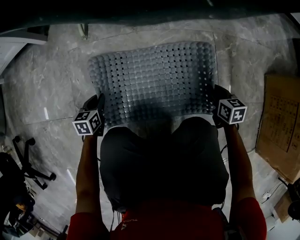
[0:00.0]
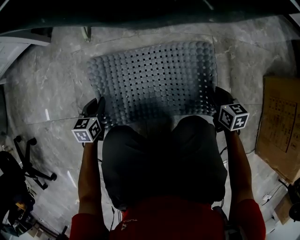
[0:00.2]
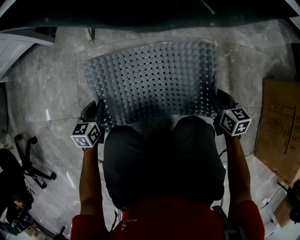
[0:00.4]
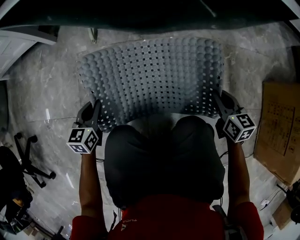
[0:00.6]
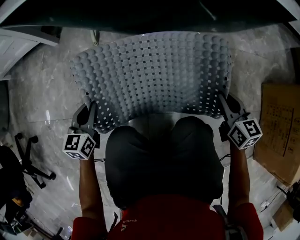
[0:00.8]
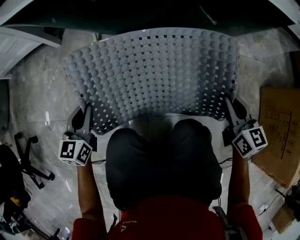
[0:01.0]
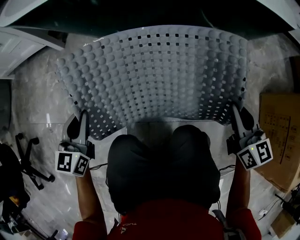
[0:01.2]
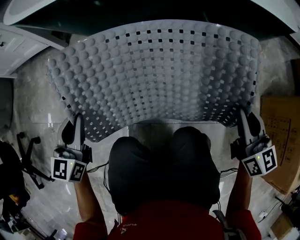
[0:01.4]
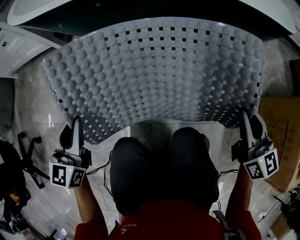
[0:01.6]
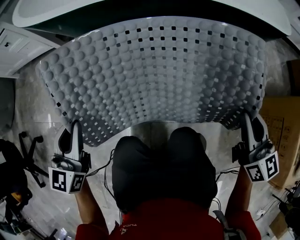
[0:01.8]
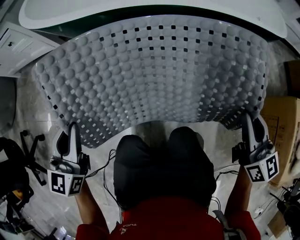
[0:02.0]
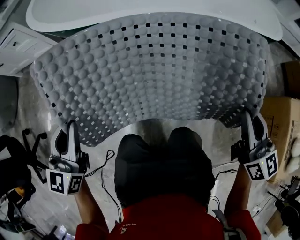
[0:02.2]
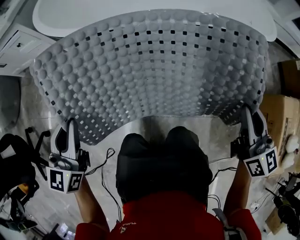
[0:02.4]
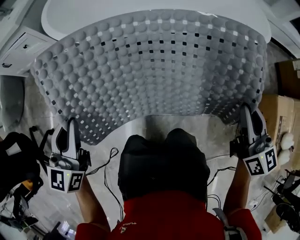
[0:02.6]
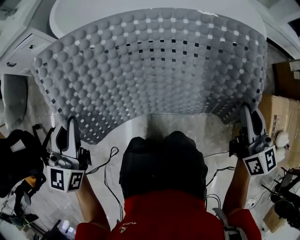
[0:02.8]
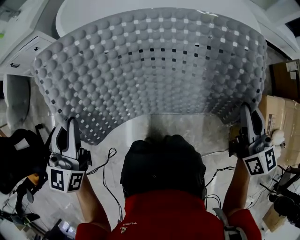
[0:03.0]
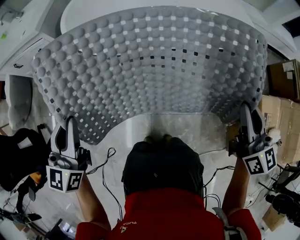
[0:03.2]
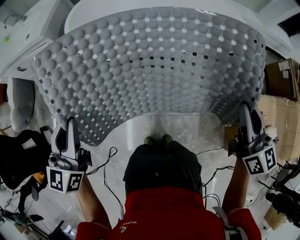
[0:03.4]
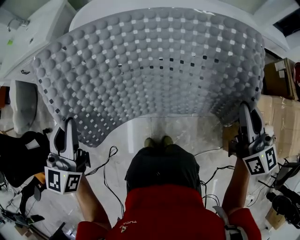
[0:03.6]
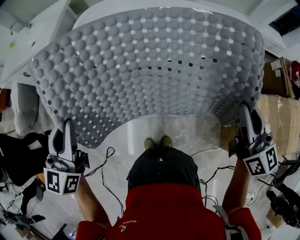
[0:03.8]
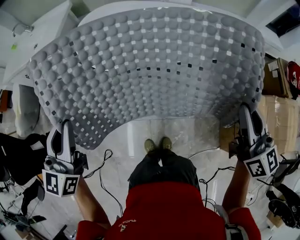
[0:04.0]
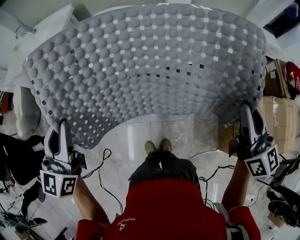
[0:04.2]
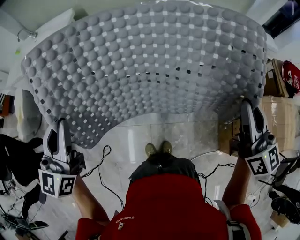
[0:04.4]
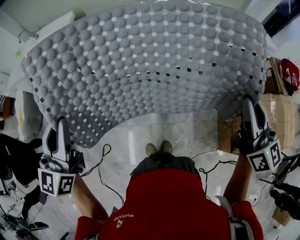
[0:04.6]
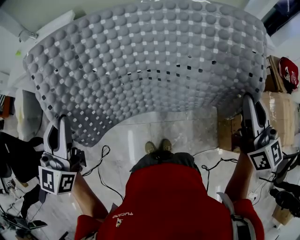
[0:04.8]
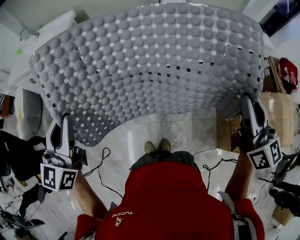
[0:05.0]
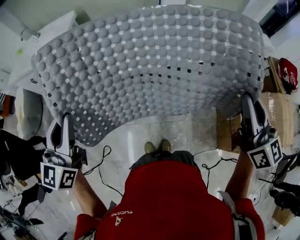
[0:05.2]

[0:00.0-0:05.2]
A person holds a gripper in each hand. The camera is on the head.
0:00.0 to 0:01.8: The two grippers go about 25 cm upward. The left gripper points its fingers about 30 degrees further upward, while the right gripper tilts its fingers approximately 30 degrees upward.
0:01.8 to 0:03.4: The grippers make only small movements.
0:03.4 to 0:05.2: The right gripper is displaced upward by roughly 5 cm.

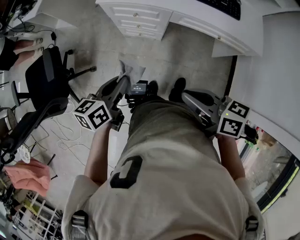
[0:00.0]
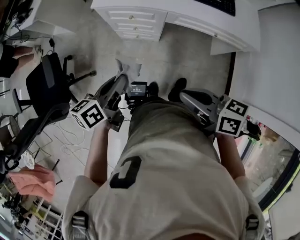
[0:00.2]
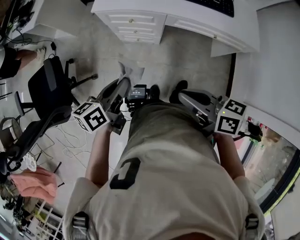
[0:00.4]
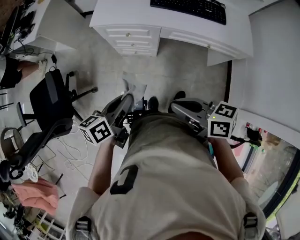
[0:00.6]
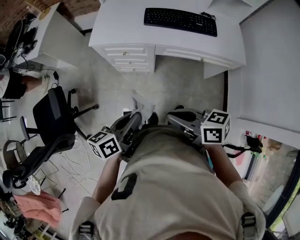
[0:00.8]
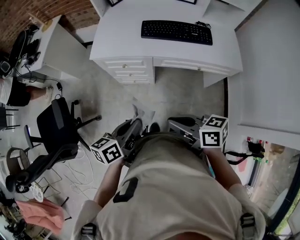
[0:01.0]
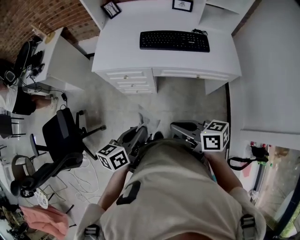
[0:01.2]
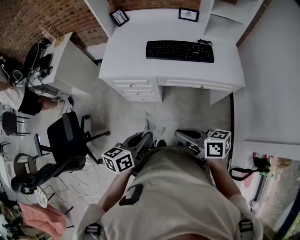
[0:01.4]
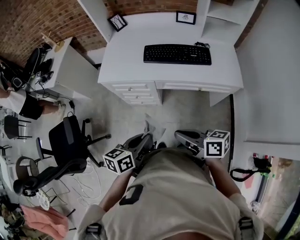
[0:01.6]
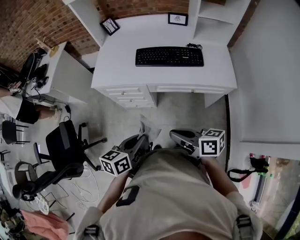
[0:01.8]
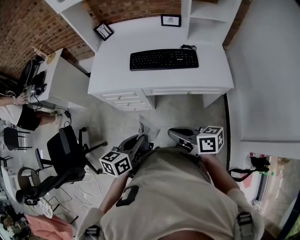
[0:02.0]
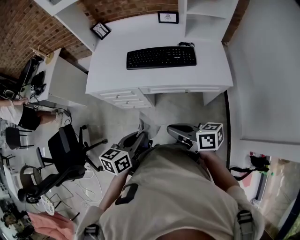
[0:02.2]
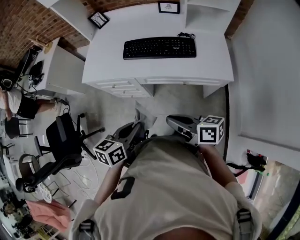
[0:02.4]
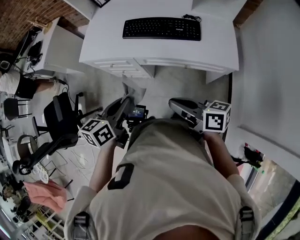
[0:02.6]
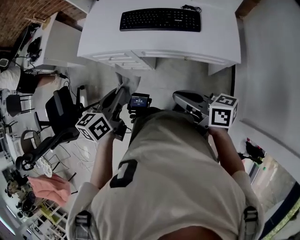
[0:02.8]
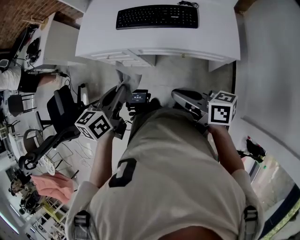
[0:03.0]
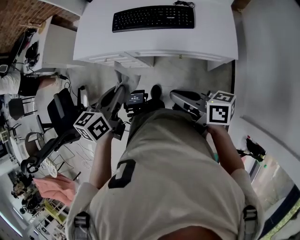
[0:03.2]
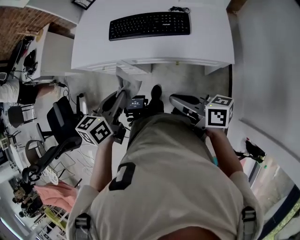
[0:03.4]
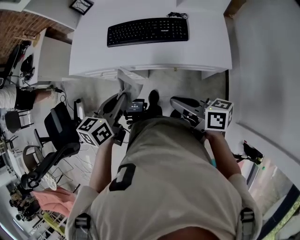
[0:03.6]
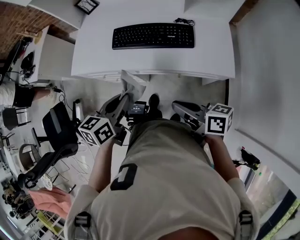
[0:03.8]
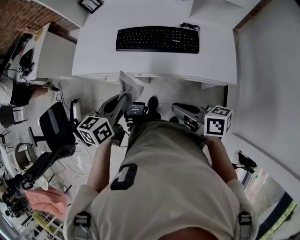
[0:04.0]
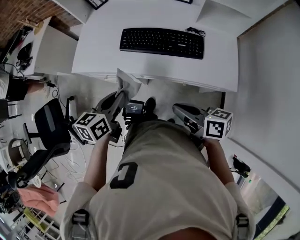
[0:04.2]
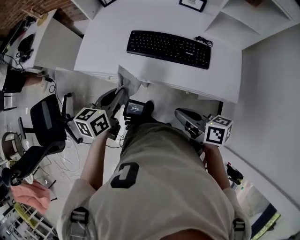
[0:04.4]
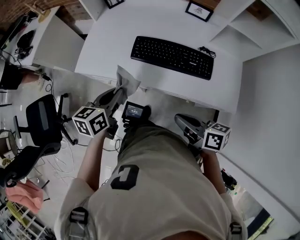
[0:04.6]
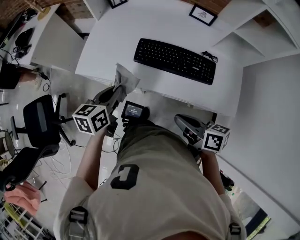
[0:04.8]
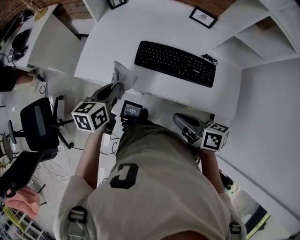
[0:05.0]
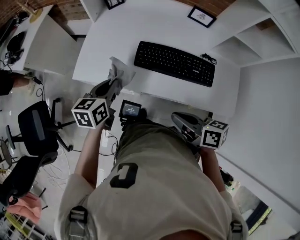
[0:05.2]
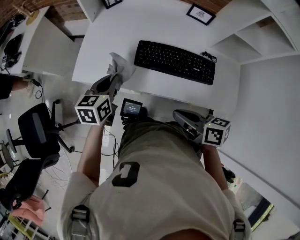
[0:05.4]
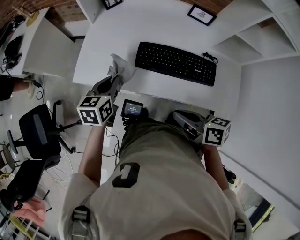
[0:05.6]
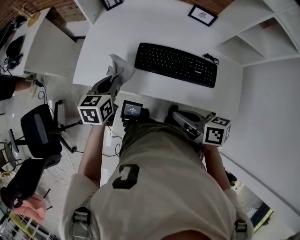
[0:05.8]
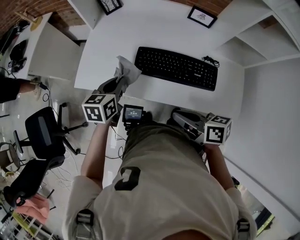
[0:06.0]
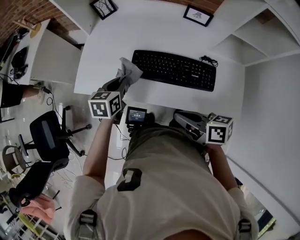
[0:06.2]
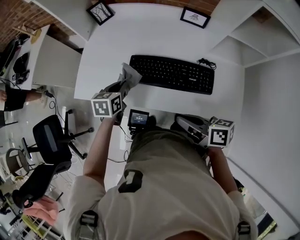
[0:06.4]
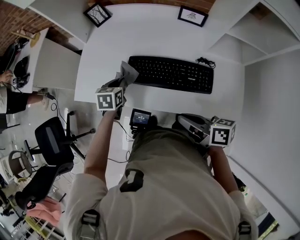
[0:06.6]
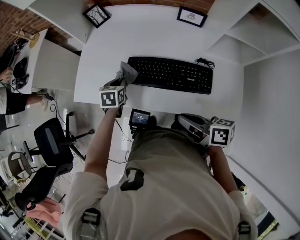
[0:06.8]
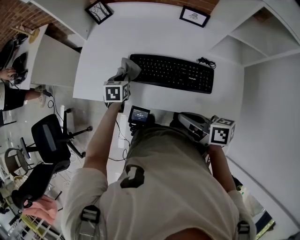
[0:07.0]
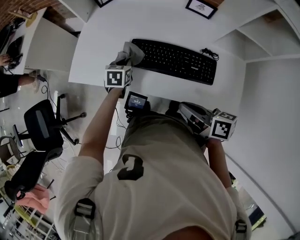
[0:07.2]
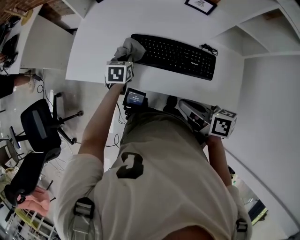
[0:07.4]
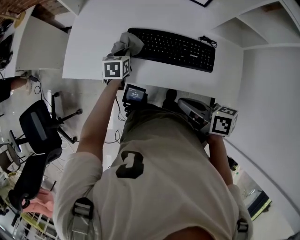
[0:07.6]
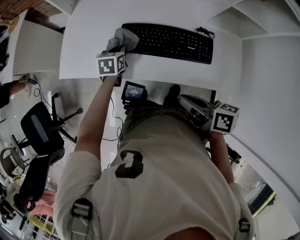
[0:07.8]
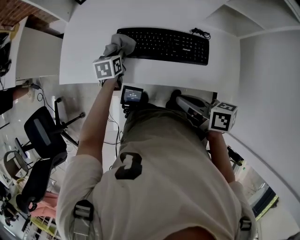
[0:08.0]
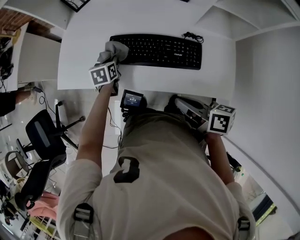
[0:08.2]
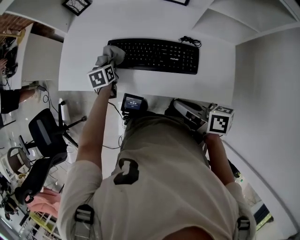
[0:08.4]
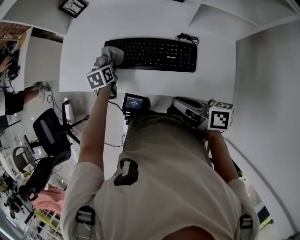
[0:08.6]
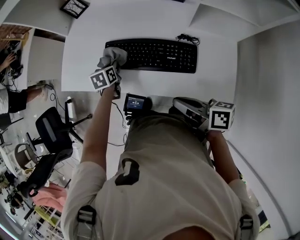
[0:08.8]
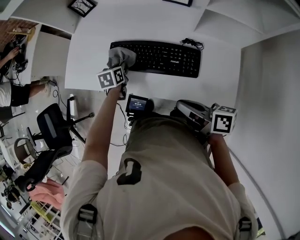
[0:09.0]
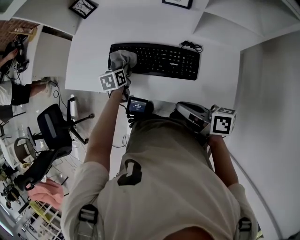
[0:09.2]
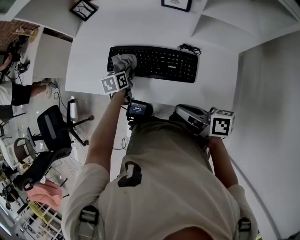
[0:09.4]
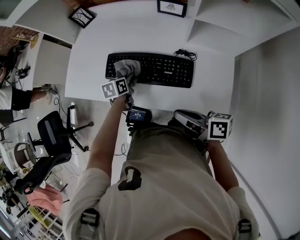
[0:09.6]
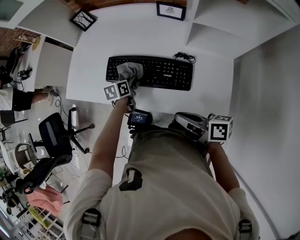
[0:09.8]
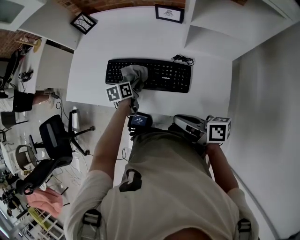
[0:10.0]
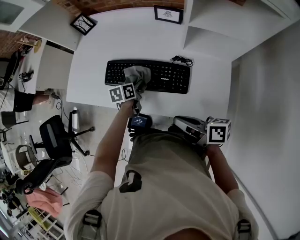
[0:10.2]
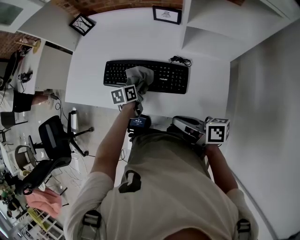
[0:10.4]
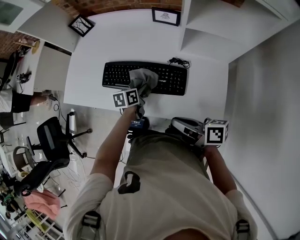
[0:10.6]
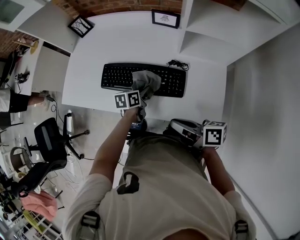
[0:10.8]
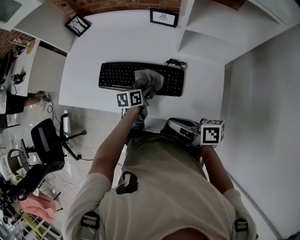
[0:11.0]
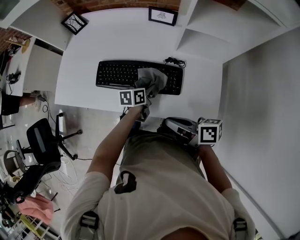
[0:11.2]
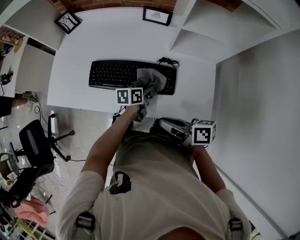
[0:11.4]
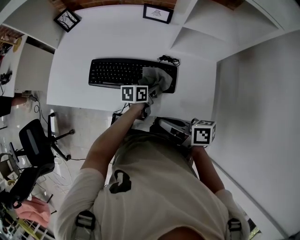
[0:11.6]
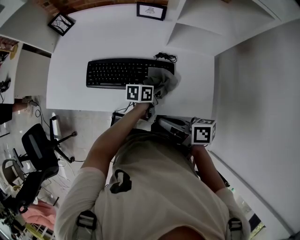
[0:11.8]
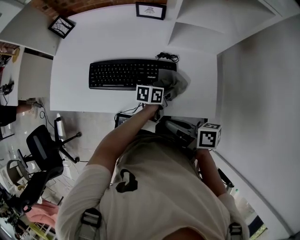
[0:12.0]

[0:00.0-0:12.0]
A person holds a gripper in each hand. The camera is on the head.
0:00.0 to 0:01.6: The right gripper is displaced to the right by roughly 10 cm. Meanwhile the left gripper goes some 15 cm to the right.
0:01.6 to 0:03.0: The right gripper travels to the right by about 15 cm. Meanwhile the left gripper moves to the right and forward, roughly 15 cm.
0:03.0 to 0:04.4: The two grippers go some 15 cm forward.
0:04.4 to 0:06.0: Both grippers travel together forward, some 15 cm.
0:06.0 to 0:07.6: The left gripper travels downward, to the right and forward by approximately 15 cm.
0:07.6 to 0:09.0: The left gripper heads to the right, covering some 5 cm. The right gripper is displaced to the right by about 15 cm.
0:09.0 to 0:10.4: The left gripper shifts about 15 cm to the right and backward.
0:10.4 to 0:12.0: The left gripper is displaced to the right by approximately 20 cm, and rotates about 30 degrees.

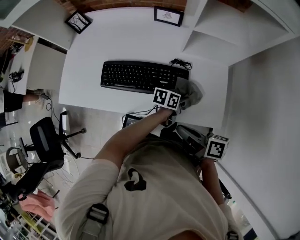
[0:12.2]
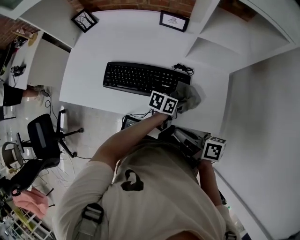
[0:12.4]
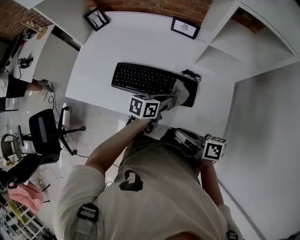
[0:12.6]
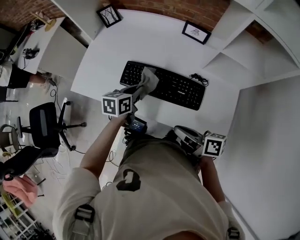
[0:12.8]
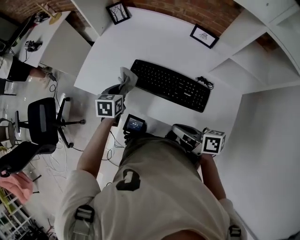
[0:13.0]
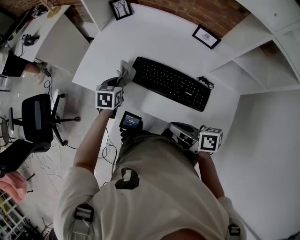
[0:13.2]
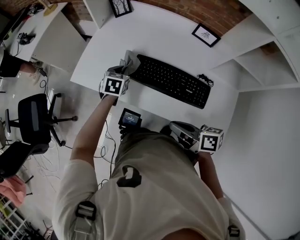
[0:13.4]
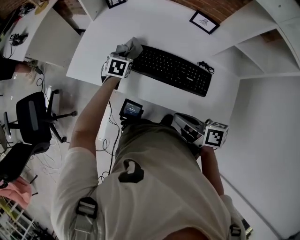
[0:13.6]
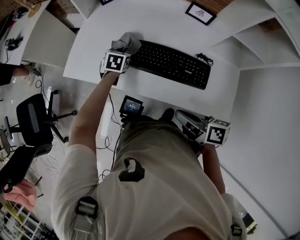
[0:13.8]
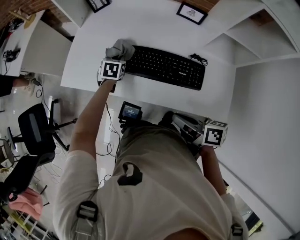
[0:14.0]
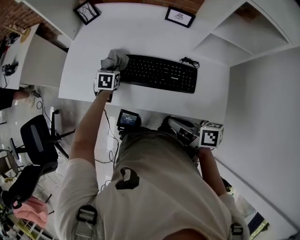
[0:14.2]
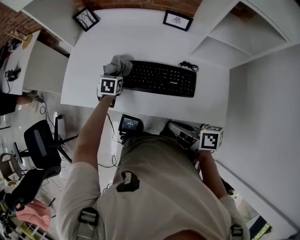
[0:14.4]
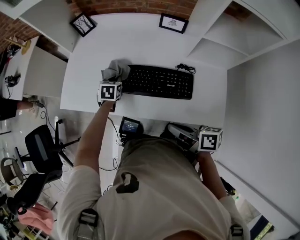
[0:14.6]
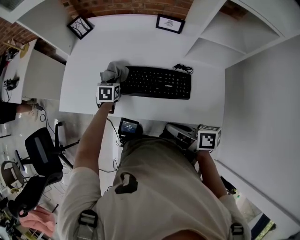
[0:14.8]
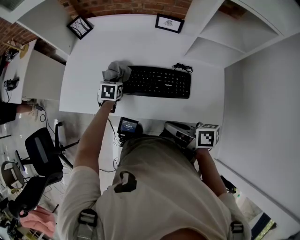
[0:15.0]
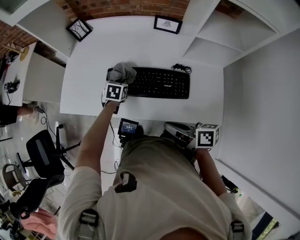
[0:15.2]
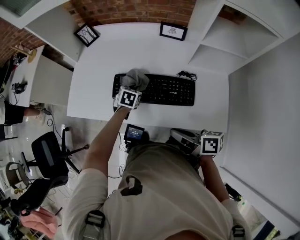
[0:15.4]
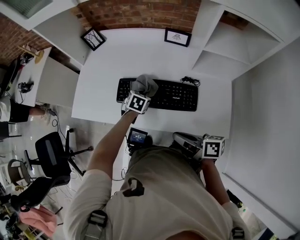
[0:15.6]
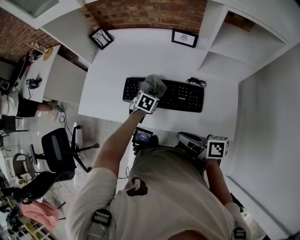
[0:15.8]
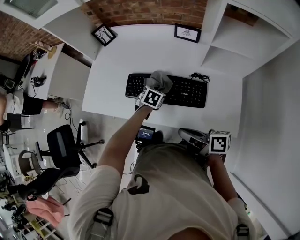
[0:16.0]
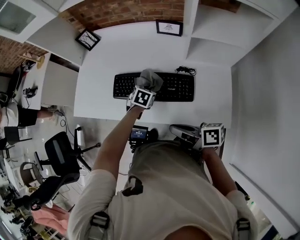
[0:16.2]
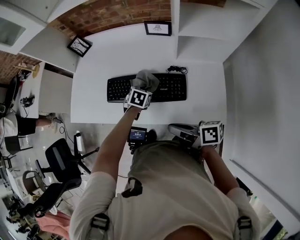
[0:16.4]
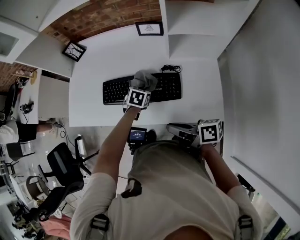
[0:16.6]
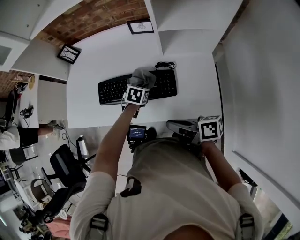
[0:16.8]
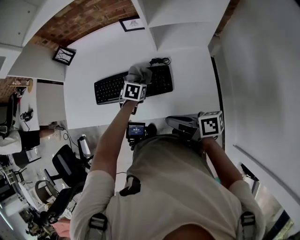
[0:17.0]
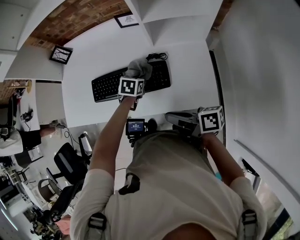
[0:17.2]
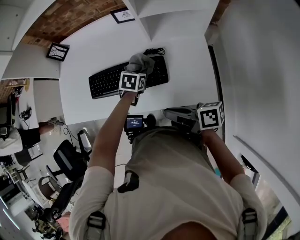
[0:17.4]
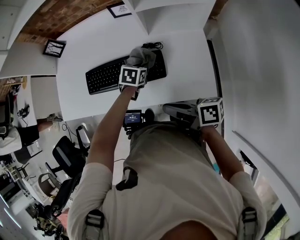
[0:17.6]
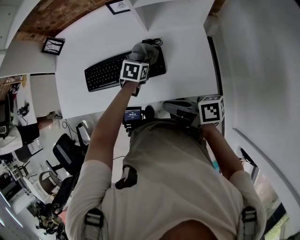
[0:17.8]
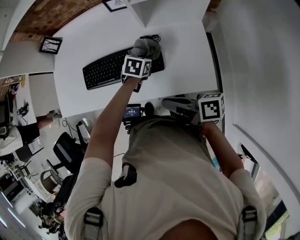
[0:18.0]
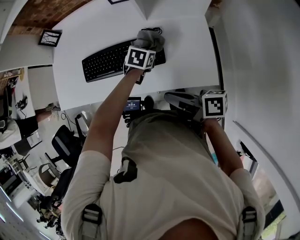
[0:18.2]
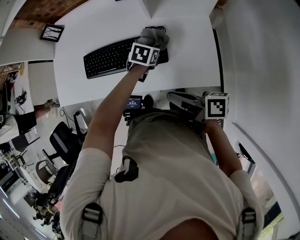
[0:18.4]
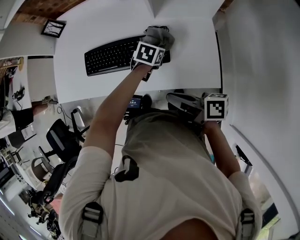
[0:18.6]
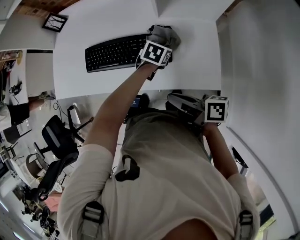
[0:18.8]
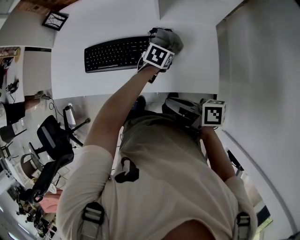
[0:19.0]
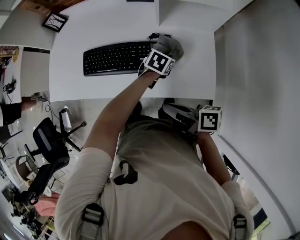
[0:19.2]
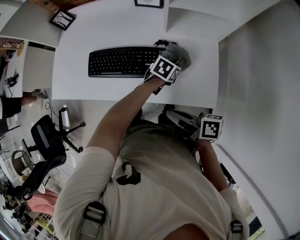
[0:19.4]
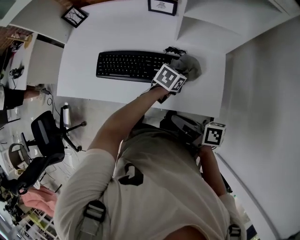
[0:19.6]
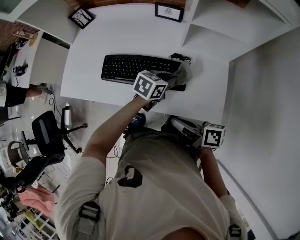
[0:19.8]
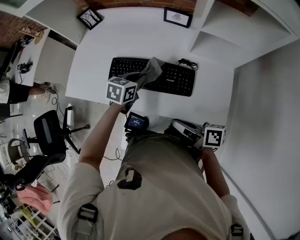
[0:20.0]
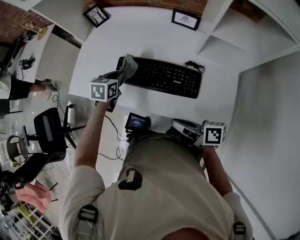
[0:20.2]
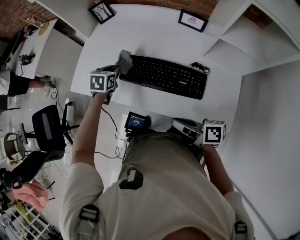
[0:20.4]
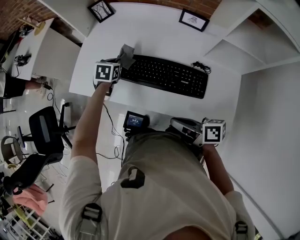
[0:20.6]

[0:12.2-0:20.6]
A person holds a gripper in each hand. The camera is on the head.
0:12.2 to 0:13.6: The left gripper ends up about 50 cm from where it was, and rotates some 60 degrees. The right gripper shifts by roughly 15 cm.
0:13.6 to 0:15.0: The left gripper goes approximately 5 cm to the right, while the right gripper changes place by about 5 cm.
0:15.0 to 0:16.4: The left gripper goes approximately 15 cm to the right and backward.
0:16.4 to 0:17.8: The right gripper goes approximately 10 cm to the right, while the left gripper heads to the right, covering roughly 15 cm.
0:17.8 to 0:19.2: The left gripper moves to the right, approximately 5 cm.
0:19.2 to 0:20.6: The left gripper ends up some 50 cm from where it was, and rotates some 30 degrees. Meanwhile the right gripper moves roughly 15 cm.
